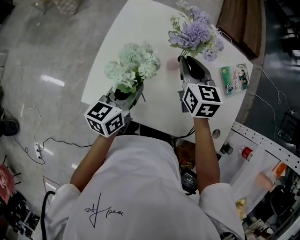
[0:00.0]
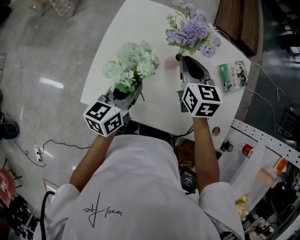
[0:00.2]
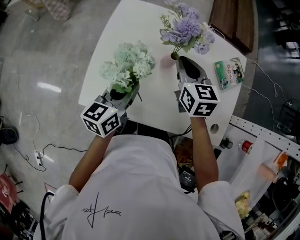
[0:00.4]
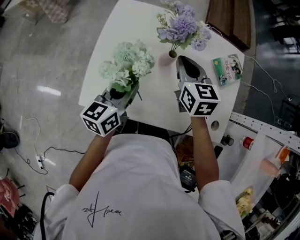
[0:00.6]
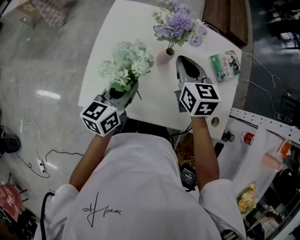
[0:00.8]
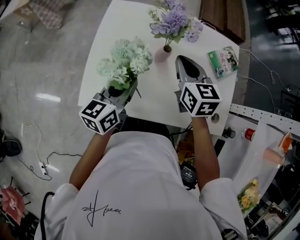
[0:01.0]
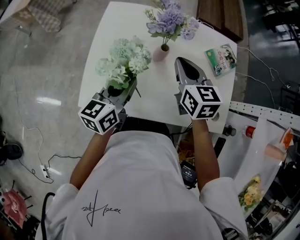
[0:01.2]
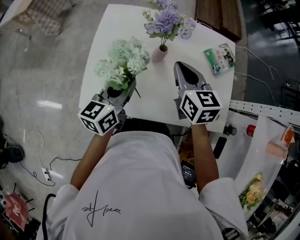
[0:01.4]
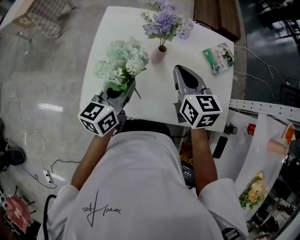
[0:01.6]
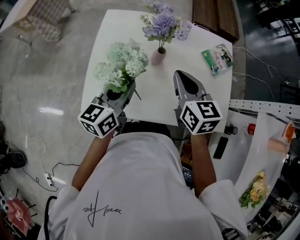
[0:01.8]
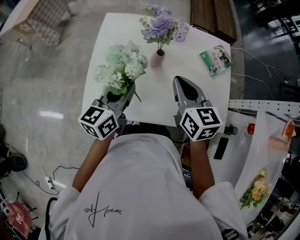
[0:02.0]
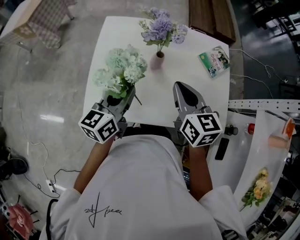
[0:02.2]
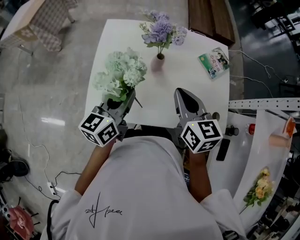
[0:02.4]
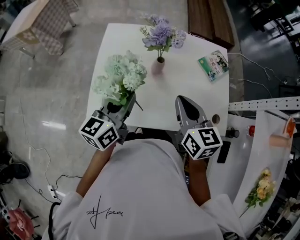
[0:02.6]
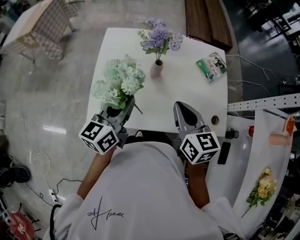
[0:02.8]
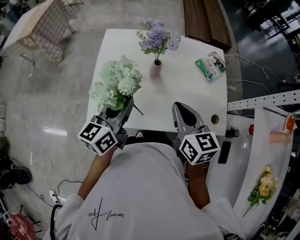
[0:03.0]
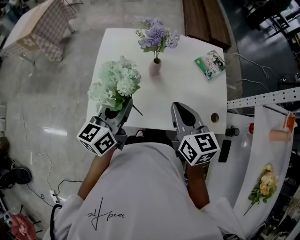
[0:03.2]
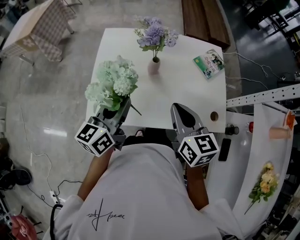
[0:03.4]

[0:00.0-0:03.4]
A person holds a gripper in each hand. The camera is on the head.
0:00.0 to 0:01.6: The right gripper heads backward, covering about 10 cm.
0:01.6 to 0:03.4: The right gripper travels backward by about 15 cm; the left gripper shifts about 10 cm backward and upward.

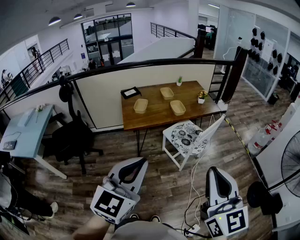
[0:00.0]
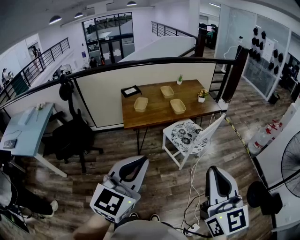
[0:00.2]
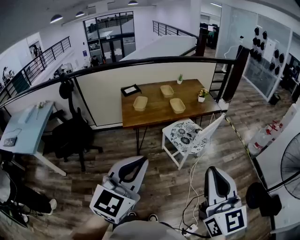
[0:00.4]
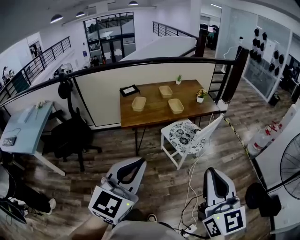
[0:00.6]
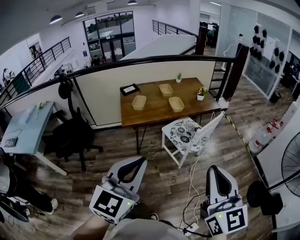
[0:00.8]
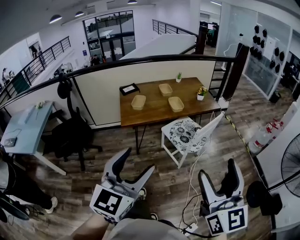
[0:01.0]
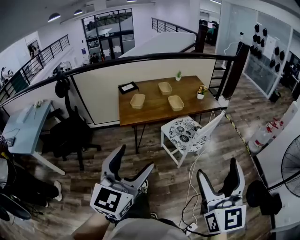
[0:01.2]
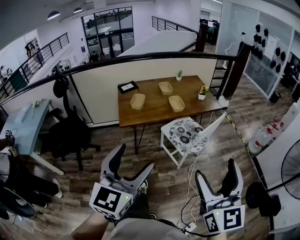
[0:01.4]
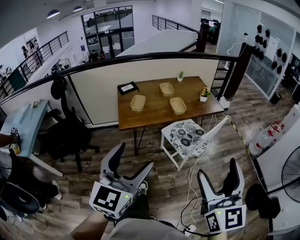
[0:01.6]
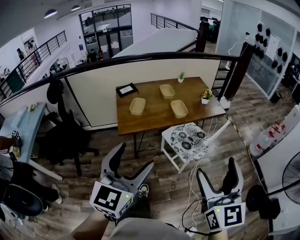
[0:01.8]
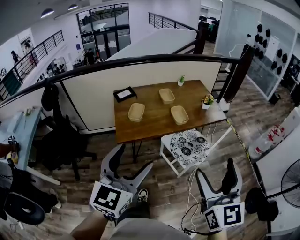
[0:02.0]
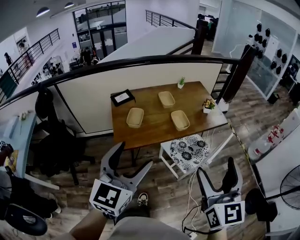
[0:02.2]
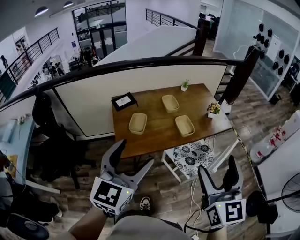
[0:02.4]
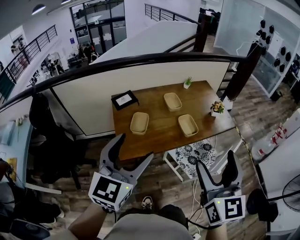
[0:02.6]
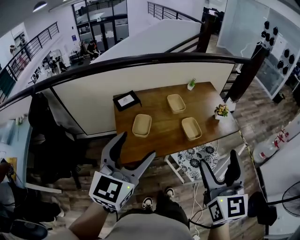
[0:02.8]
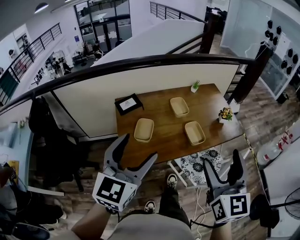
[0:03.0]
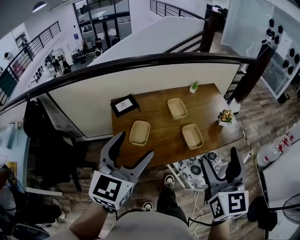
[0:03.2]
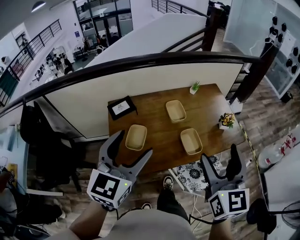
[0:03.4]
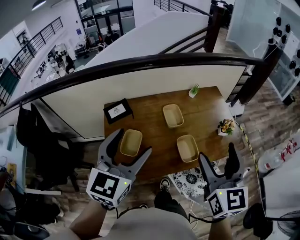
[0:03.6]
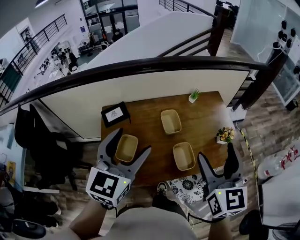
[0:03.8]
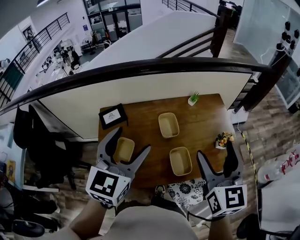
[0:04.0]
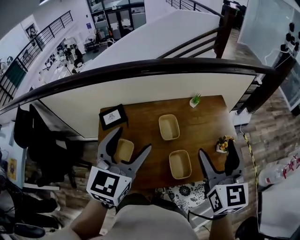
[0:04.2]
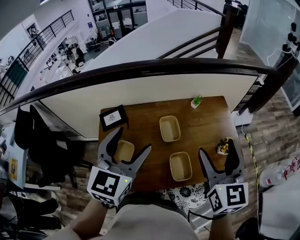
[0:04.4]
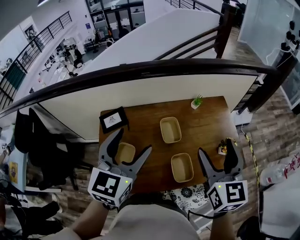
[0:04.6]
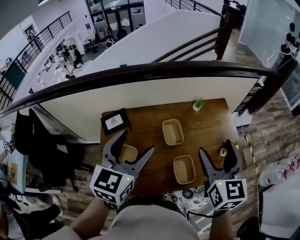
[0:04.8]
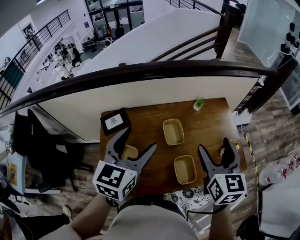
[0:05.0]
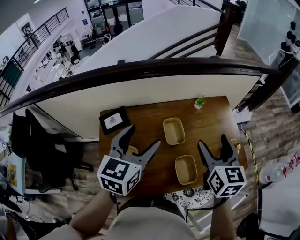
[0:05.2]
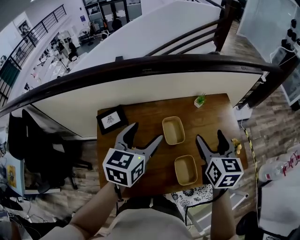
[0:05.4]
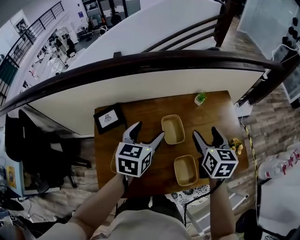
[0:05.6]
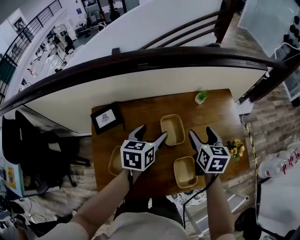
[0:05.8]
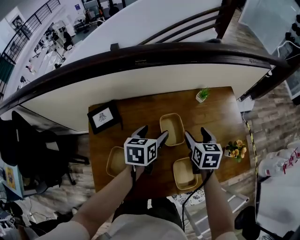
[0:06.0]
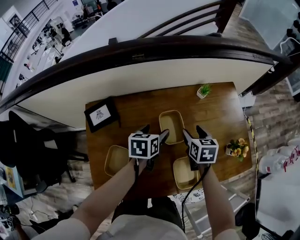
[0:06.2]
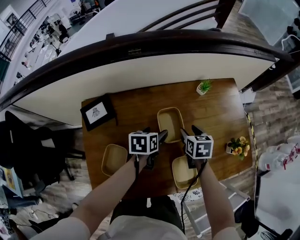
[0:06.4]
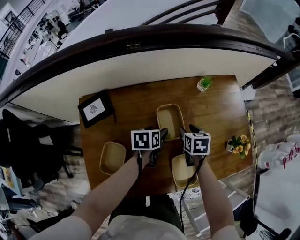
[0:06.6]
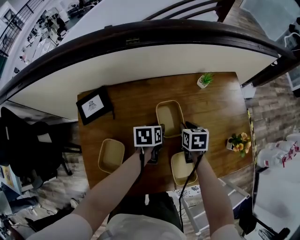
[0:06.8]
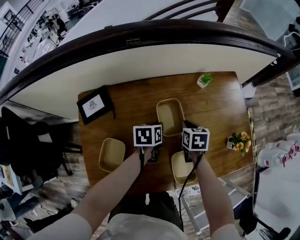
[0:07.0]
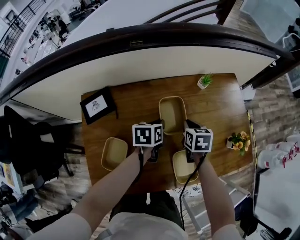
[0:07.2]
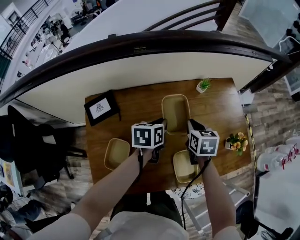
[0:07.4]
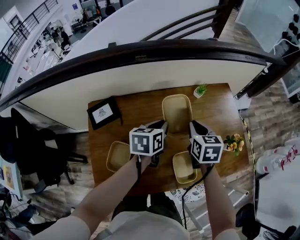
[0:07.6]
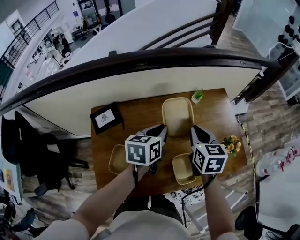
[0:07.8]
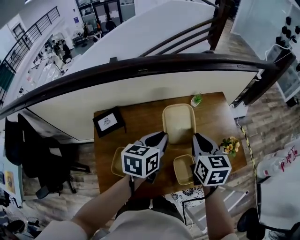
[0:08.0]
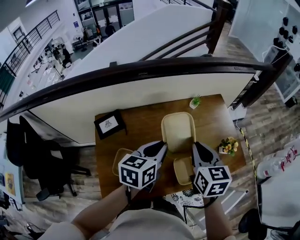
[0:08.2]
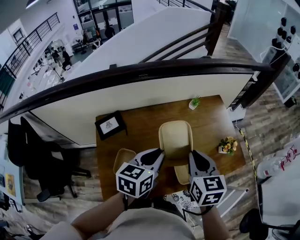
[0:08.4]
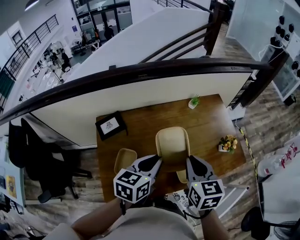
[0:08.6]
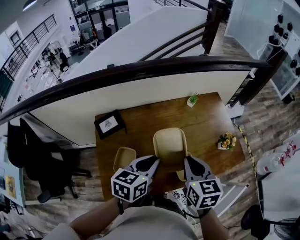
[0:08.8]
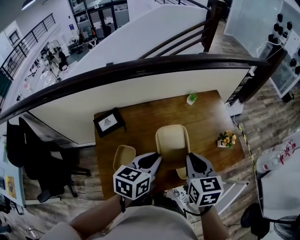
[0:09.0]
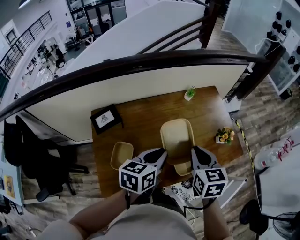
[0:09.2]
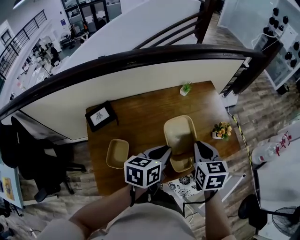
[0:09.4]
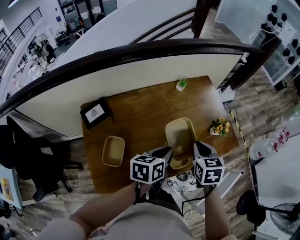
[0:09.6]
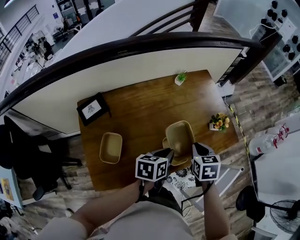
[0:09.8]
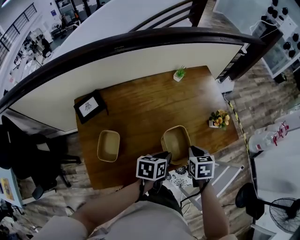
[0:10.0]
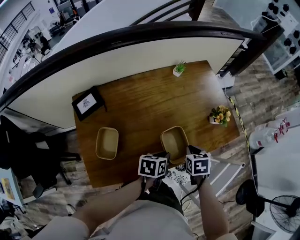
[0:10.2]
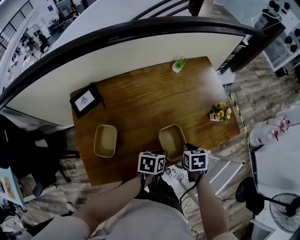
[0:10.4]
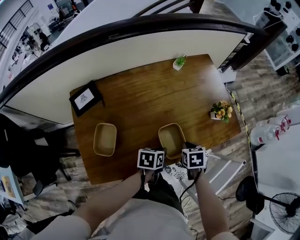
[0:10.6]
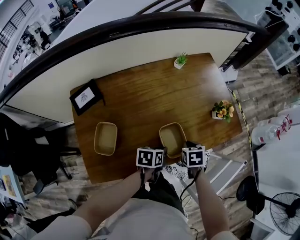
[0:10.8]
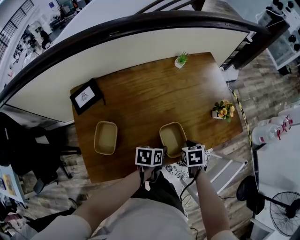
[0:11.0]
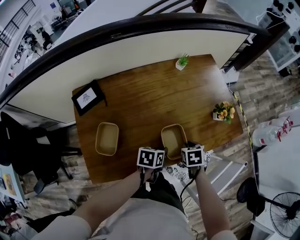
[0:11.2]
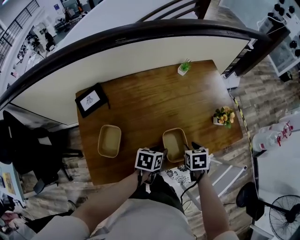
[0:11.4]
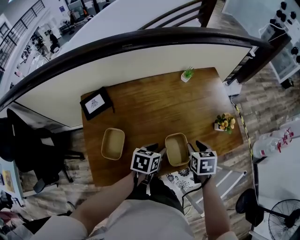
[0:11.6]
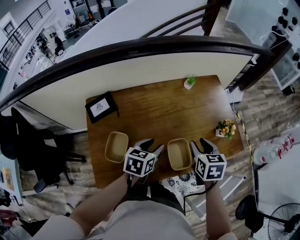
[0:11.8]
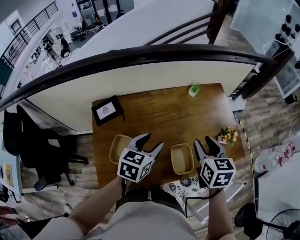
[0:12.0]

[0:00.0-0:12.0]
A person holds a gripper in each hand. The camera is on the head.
0:00.0 to 0:01.6: Both grippers move forward, some 10 cm. The right gripper opens its fingers, while the left gripper opens its fingers.
0:01.6 to 0:03.0: The two grippers travel together, forward, roughly 40 cm.
0:03.0 to 0:04.4: Both grippers travel together forward, roughly 30 cm.
0:04.4 to 0:06.0: The grippers both shift downward and forward by about 35 cm. The left gripper turns by some 40 degrees. Meanwhile the right gripper tilts its fingers roughly 30 degrees downward.
0:06.0 to 0:07.6: The right gripper travels downward and back again, some 15 cm each way, and closes up. Meanwhile the left gripper travels downward and back again, roughly 15 cm each way, and closes its fingers.
0:07.6 to 0:09.0: The grippers both shift backward and upward by approximately 20 cm.
0:09.0 to 0:10.4: Both grippers move downward and to the right, some 25 cm. The left gripper changes its angle by approximately 30 degrees; the right gripper angles its fingers downward, by some 30 degrees.
0:10.4 to 0:12.0: The left gripper shifts approximately 25 cm upward and to the left, changes its angle by approximately 30 degrees, and opens up, while the right gripper is displaced upward by about 20 cm, turns by about 30 degrees, and opens up.

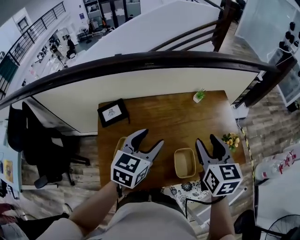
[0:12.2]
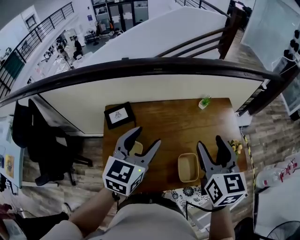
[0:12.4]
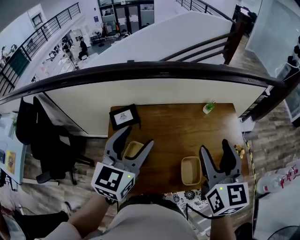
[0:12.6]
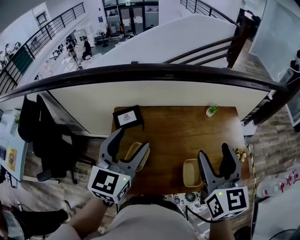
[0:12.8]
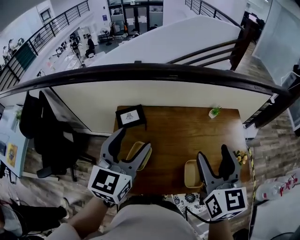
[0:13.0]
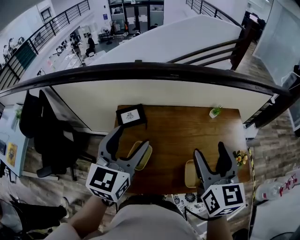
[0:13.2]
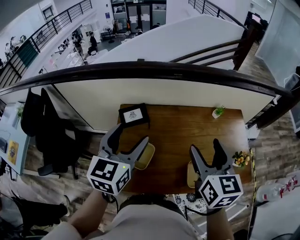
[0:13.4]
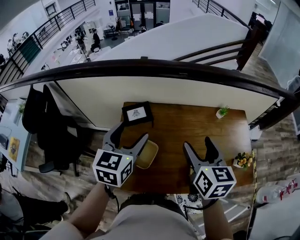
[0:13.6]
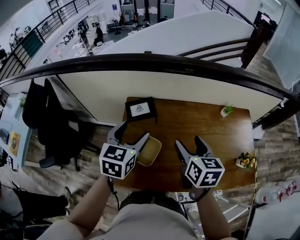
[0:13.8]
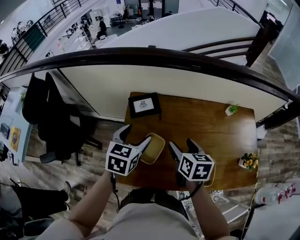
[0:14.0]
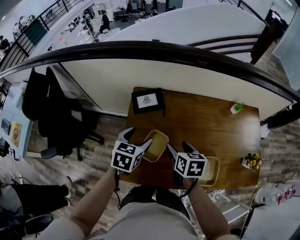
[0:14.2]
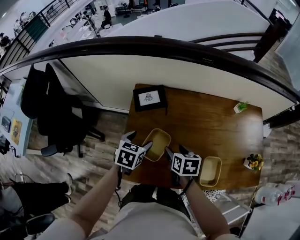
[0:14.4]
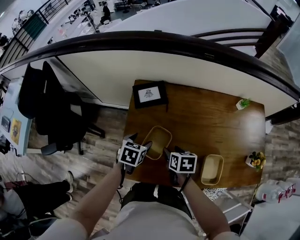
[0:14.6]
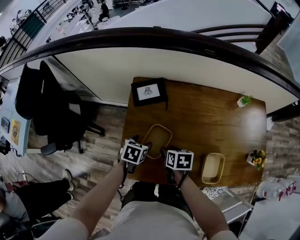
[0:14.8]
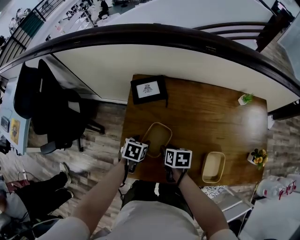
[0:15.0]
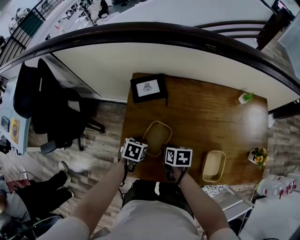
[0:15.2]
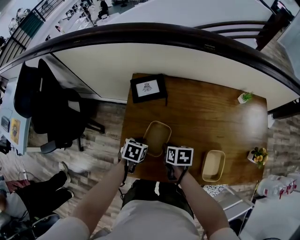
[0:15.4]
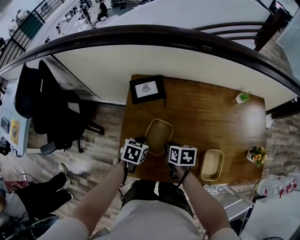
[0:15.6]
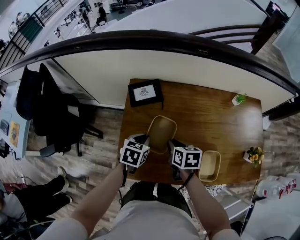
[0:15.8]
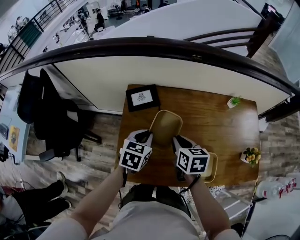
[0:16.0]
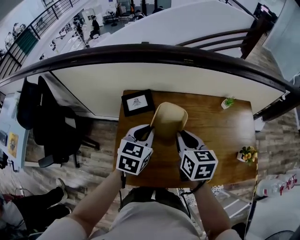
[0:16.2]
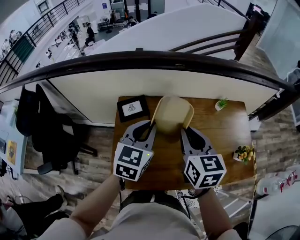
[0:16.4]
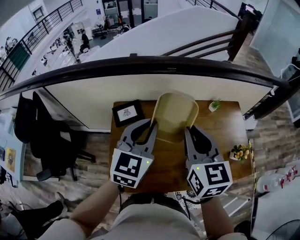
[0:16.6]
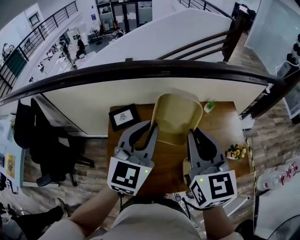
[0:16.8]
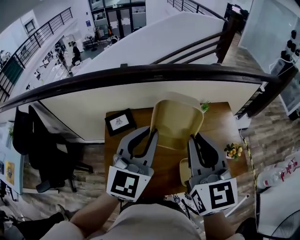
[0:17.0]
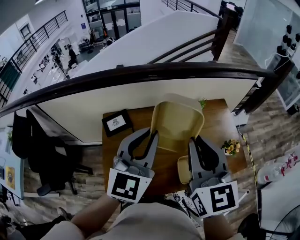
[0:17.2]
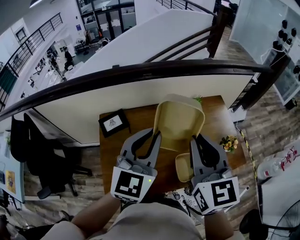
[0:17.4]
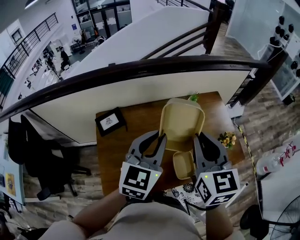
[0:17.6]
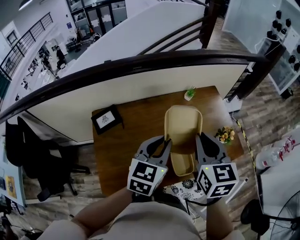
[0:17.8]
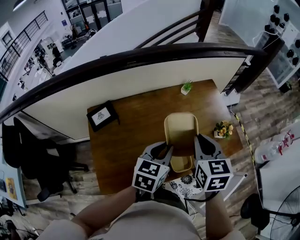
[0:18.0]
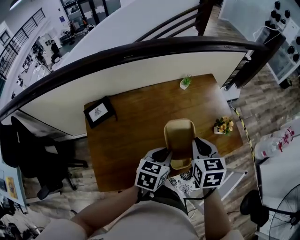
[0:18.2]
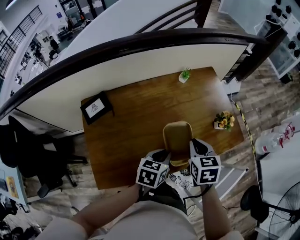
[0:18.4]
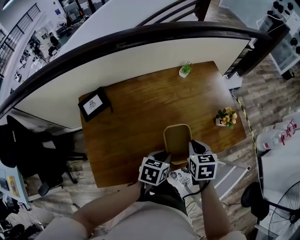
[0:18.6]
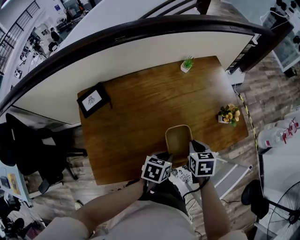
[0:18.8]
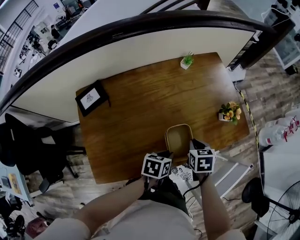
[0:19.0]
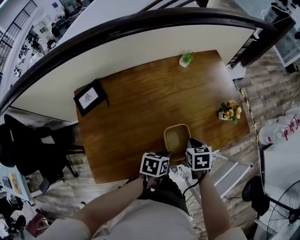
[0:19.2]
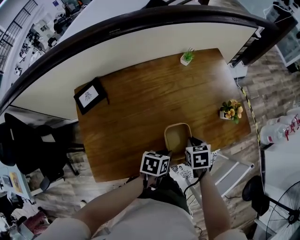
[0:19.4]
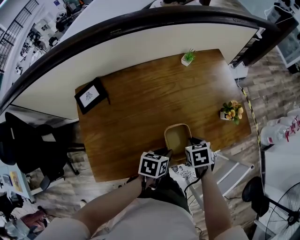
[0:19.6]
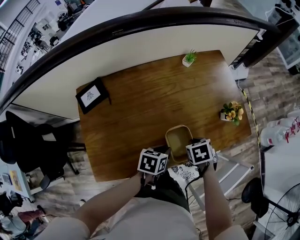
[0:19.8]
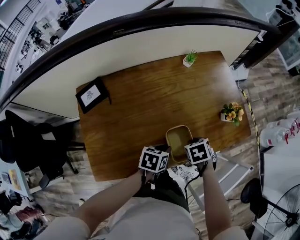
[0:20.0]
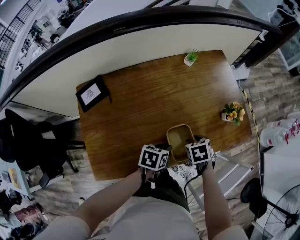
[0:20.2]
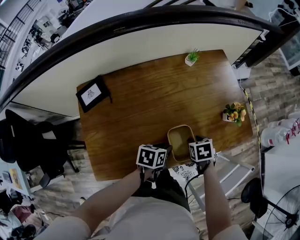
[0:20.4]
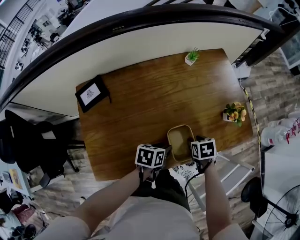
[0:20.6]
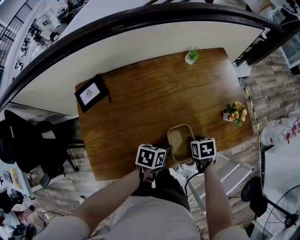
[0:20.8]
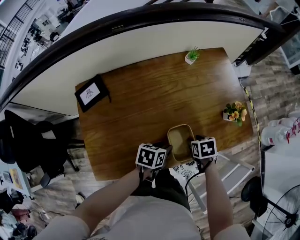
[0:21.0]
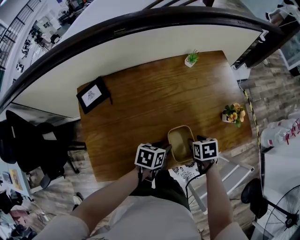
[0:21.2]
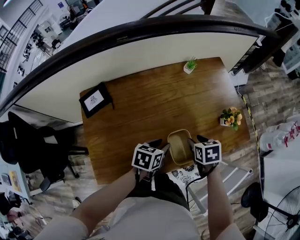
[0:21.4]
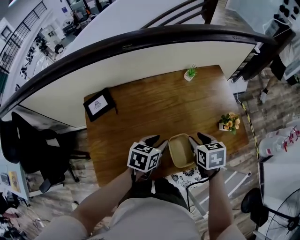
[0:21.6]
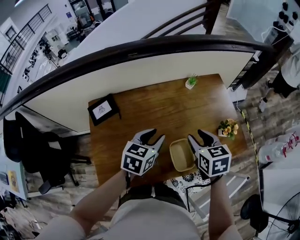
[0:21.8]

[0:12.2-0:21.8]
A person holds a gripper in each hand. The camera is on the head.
0:12.2 to 0:13.8: The grippers both shift to the left by some 20 cm. The left gripper turns by some 20 degrees.
0:13.8 to 0:15.4: Both grippers move downward, approximately 30 cm. The right gripper rotates about 40 degrees, and closes up, while the left gripper points its fingers roughly 40 degrees further downward, and closes.
0:15.4 to 0:17.0: The two grippers go some 50 cm upward. The right gripper tips its fingers upward by roughly 50 degrees. Meanwhile the left gripper angles its fingers upward, by roughly 60 degrees.
0:17.0 to 0:18.6: The two grippers go about 40 cm downward and to the right. The left gripper tips its fingers downward by approximately 50 degrees. Meanwhile the right gripper angles its fingers downward, by some 40 degrees.
0:18.6 to 0:20.2: The left gripper goes roughly 5 cm downward, while the right gripper is displaced downward by about 10 cm, and rotates some 20 degrees.
0:20.2 to 0:21.8: The left gripper travels upward, to the left and forward by about 20 cm, and changes its angle by about 30 degrees, while the right gripper shifts some 20 cm upward, and tilts its fingers some 30 degrees upward.
